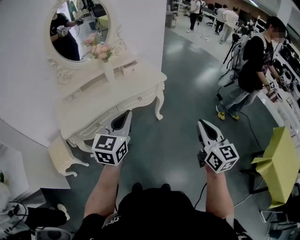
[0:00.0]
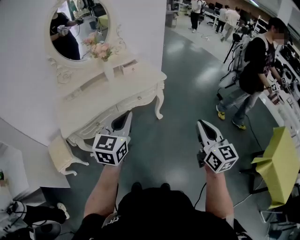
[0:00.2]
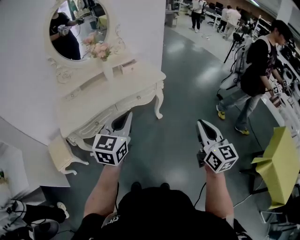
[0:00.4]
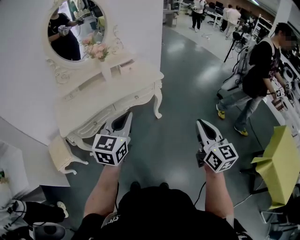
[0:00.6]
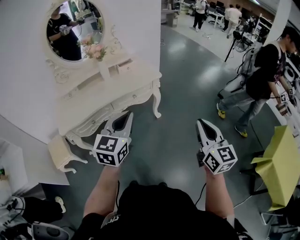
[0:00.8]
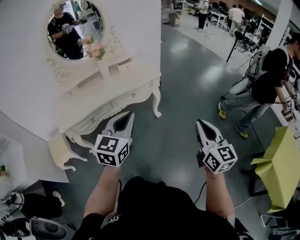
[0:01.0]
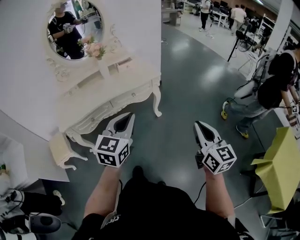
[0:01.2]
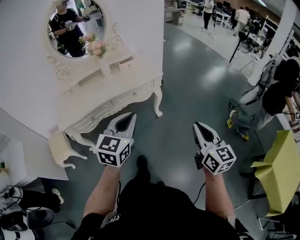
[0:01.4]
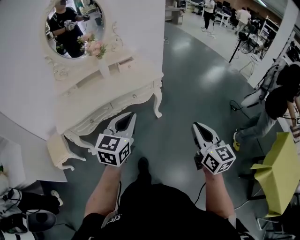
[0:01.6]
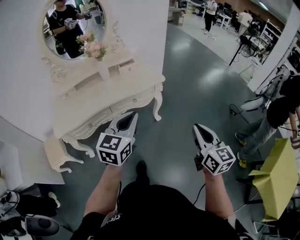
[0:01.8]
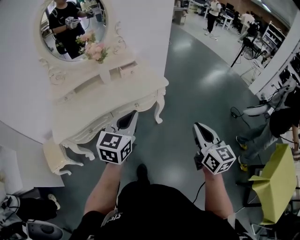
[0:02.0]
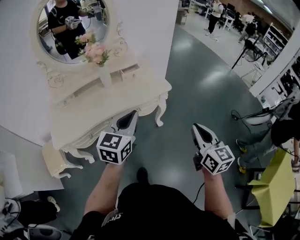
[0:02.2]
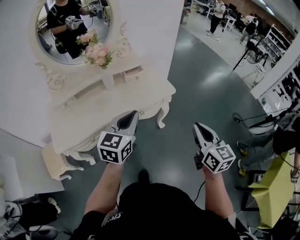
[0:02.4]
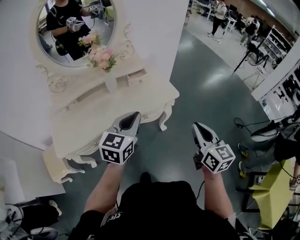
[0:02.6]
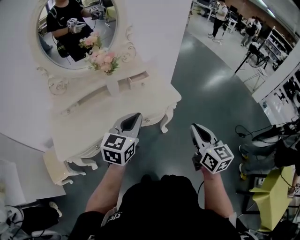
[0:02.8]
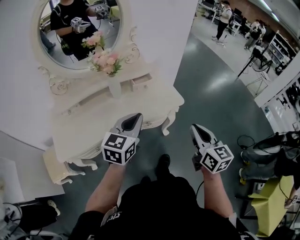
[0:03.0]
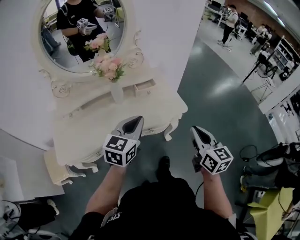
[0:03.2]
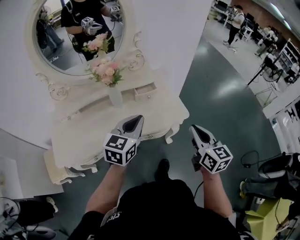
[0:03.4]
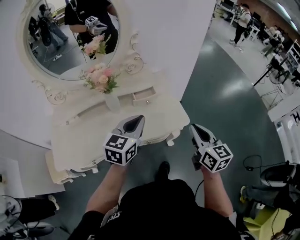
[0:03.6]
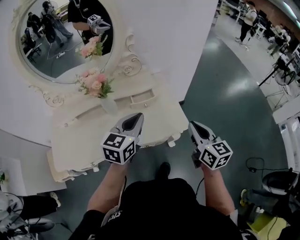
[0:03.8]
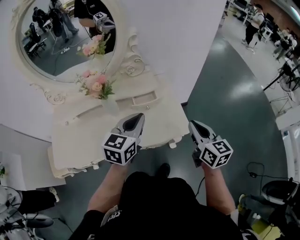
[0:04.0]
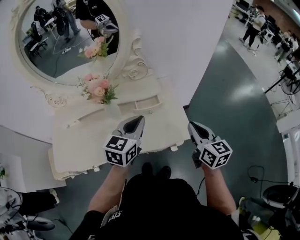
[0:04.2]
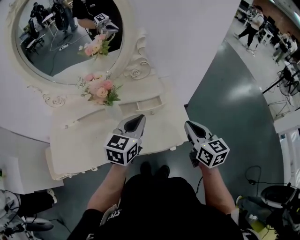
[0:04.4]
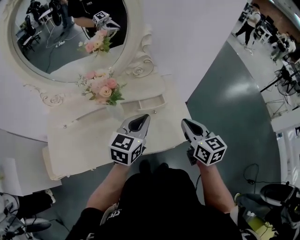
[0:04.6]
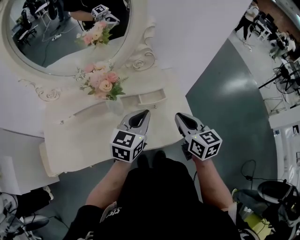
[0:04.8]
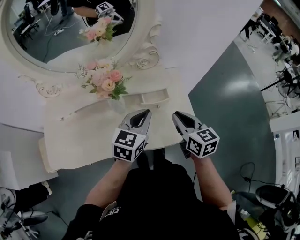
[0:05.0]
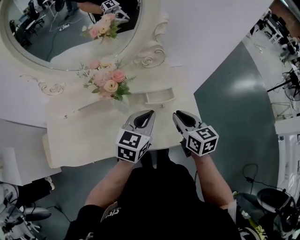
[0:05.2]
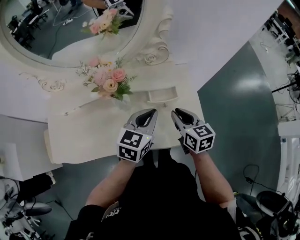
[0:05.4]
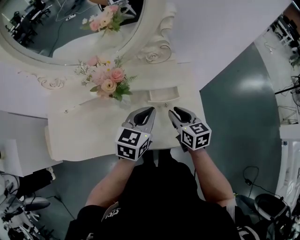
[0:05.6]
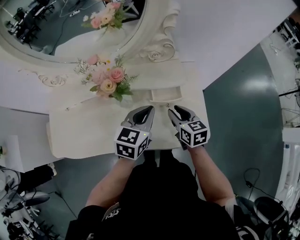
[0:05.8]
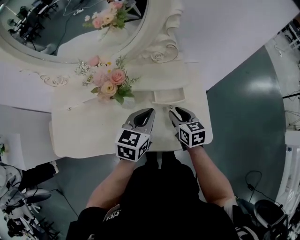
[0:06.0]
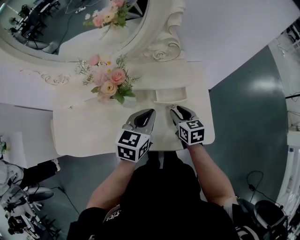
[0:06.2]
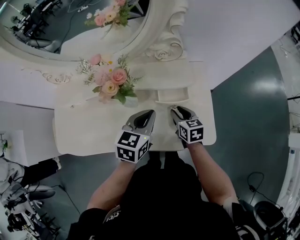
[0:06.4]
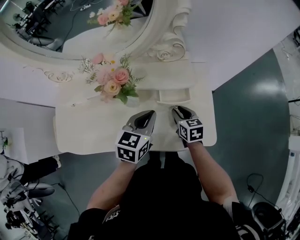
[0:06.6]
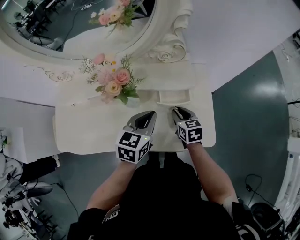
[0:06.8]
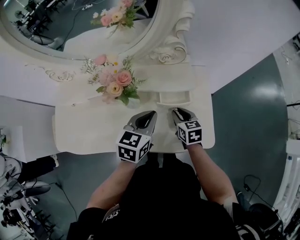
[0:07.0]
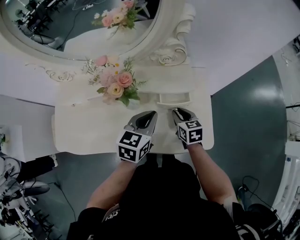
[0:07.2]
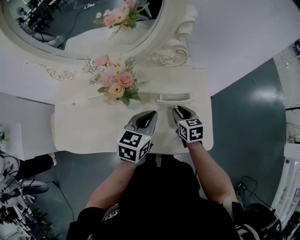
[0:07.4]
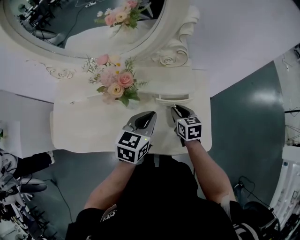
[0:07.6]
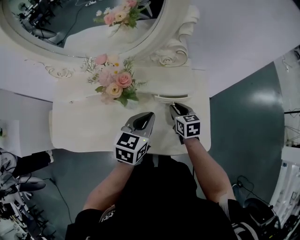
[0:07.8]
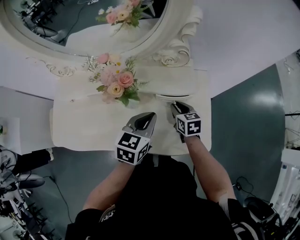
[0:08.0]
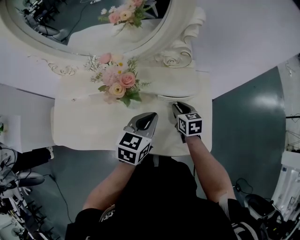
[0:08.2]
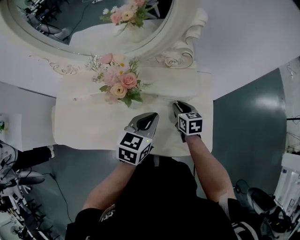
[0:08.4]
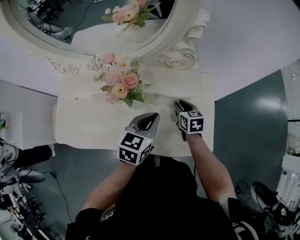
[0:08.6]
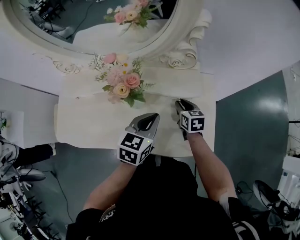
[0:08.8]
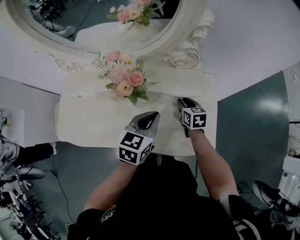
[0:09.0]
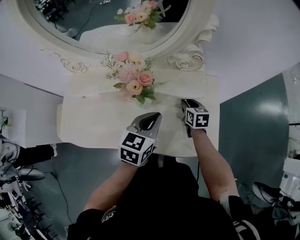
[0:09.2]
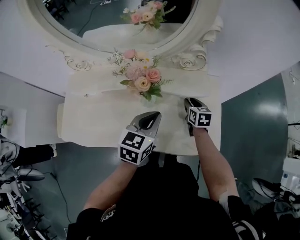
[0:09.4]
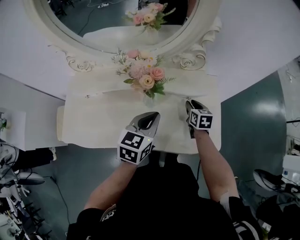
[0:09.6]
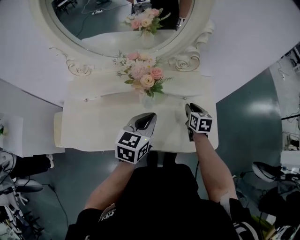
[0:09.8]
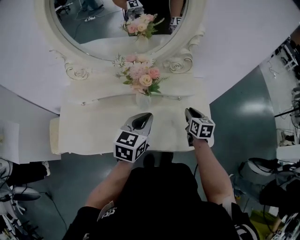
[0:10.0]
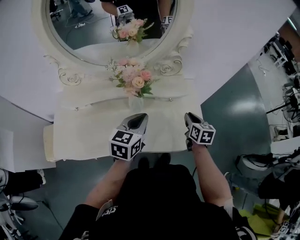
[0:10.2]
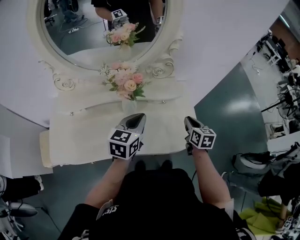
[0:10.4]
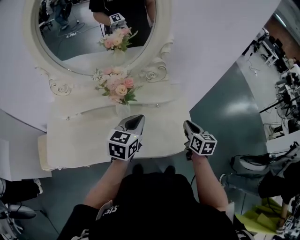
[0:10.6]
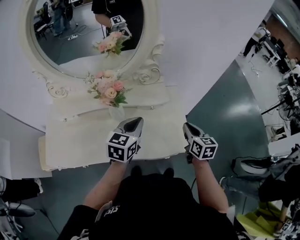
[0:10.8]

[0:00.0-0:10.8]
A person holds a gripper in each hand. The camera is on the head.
0:00.0 to 0:01.6: The right gripper moves to the right, approximately 5 cm, while the left gripper travels to the right by roughly 10 cm.
0:01.6 to 0:03.0: Both grippers move forward and to the left, some 30 cm.
0:03.0 to 0:04.6: The grippers both shift forward by roughly 25 cm.
0:04.6 to 0:06.2: The right gripper heads downward, forward and to the left, covering roughly 25 cm, turns by approximately 20 degrees, and opens its fingers. Meanwhile the left gripper is displaced downward by roughly 10 cm.
0:06.2 to 0:07.8: The grippers make only small movements.
0:07.8 to 0:09.2: The grippers move only a little.
0:09.2 to 0:10.8: The right gripper goes approximately 25 cm to the right, upward and backward, while the left gripper shifts by about 5 cm.

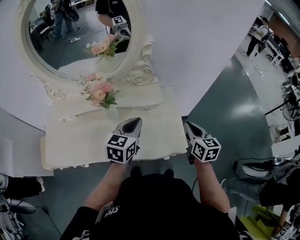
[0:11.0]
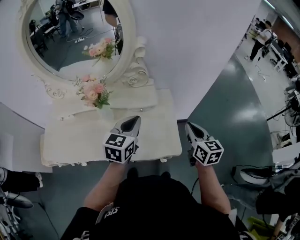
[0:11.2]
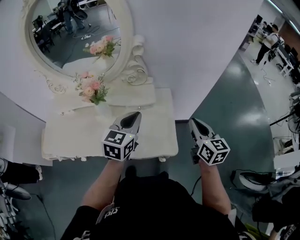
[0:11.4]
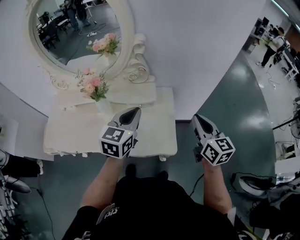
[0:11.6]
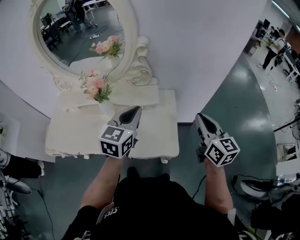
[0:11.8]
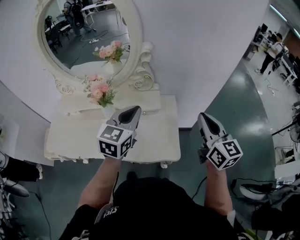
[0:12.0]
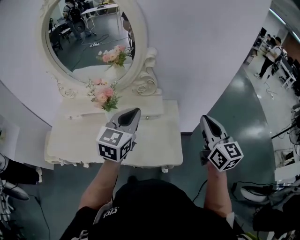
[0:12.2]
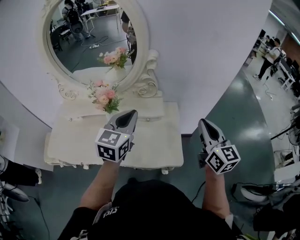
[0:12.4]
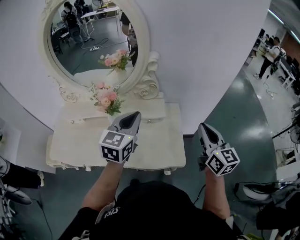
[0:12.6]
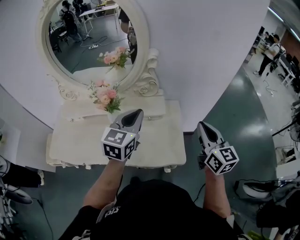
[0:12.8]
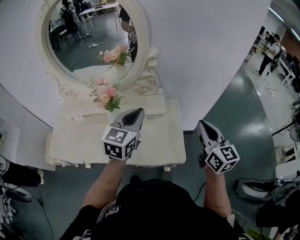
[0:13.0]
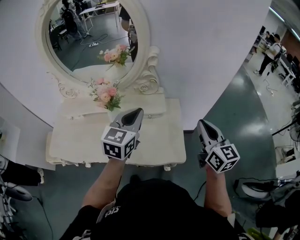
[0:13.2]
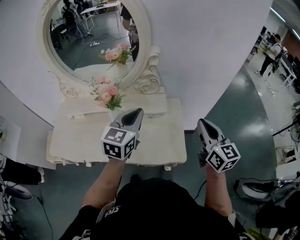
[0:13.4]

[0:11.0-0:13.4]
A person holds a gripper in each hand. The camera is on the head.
0:11.0 to 0:12.2: Both grippers travel together upward, roughly 15 cm. The right gripper changes its angle by some 20 degrees.
0:12.2 to 0:13.4: The grippers make only small movements.

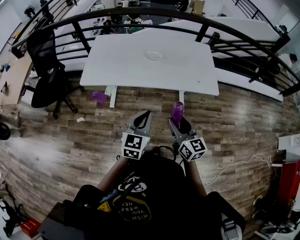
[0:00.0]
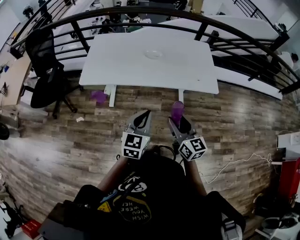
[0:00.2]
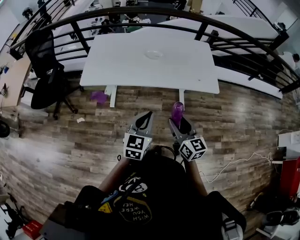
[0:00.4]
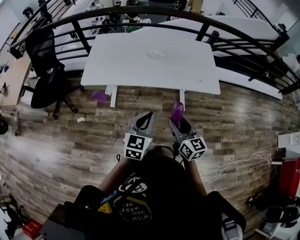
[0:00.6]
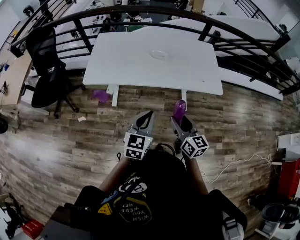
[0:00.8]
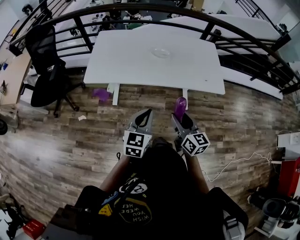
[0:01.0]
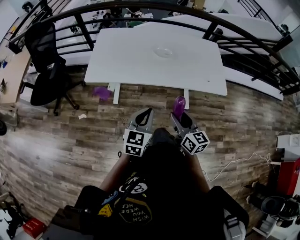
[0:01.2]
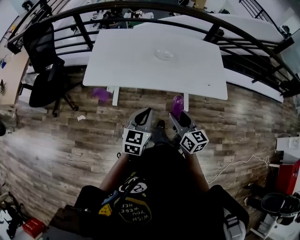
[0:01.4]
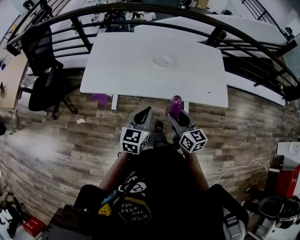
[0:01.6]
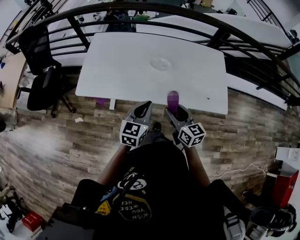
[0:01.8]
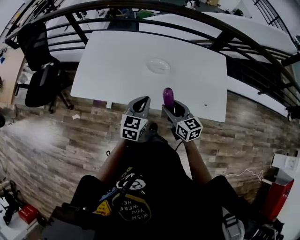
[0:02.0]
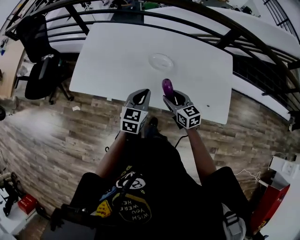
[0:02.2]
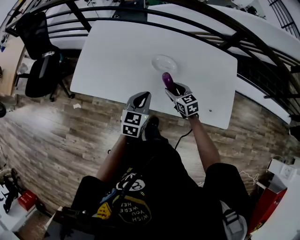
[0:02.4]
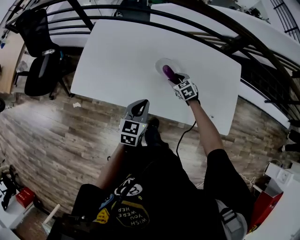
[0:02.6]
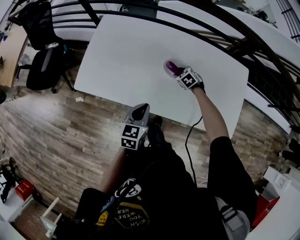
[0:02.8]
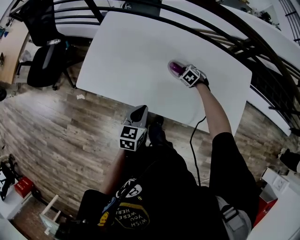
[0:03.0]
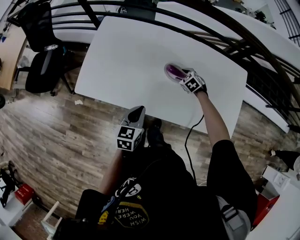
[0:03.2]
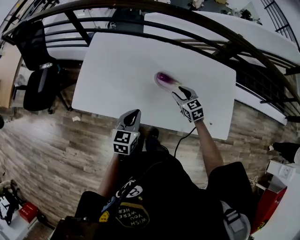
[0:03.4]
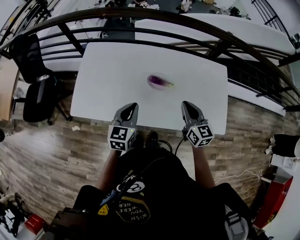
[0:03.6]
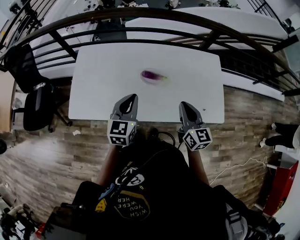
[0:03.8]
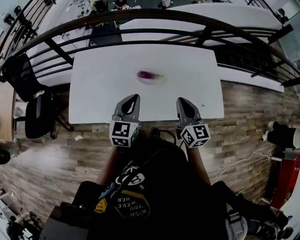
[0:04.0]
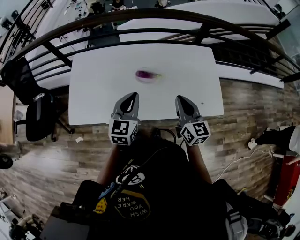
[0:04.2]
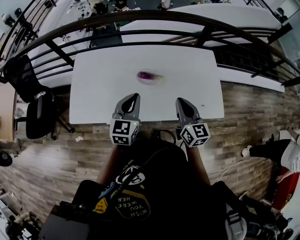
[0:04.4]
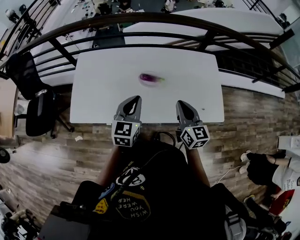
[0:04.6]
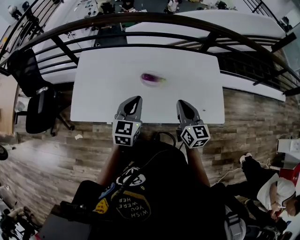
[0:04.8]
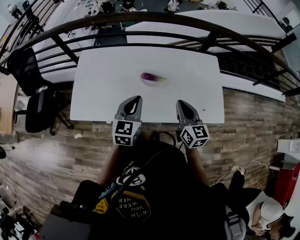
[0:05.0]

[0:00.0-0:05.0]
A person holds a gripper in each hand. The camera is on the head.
0:00.0 to 0:01.6: Both grippers travel together forward and to the left, approximately 20 cm.
0:01.6 to 0:03.4: The right gripper shifts by some 40 cm, and swivels roughly 40 degrees, while the left gripper shifts by about 25 cm.
0:03.4 to 0:05.0: The left gripper heads upward and to the right, covering roughly 10 cm. The right gripper heads upward, backward and to the right, covering some 25 cm, swivels approximately 40 degrees, and closes its fingers.

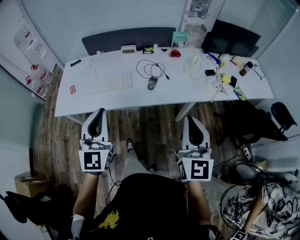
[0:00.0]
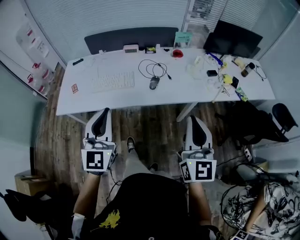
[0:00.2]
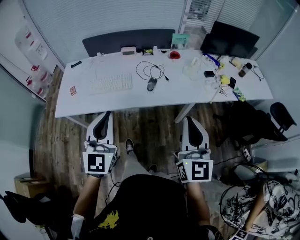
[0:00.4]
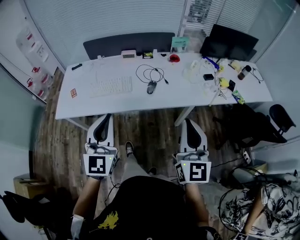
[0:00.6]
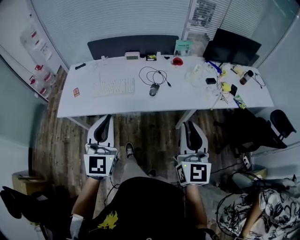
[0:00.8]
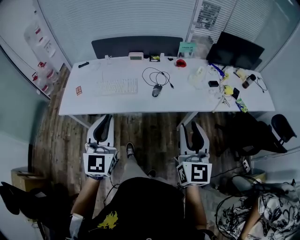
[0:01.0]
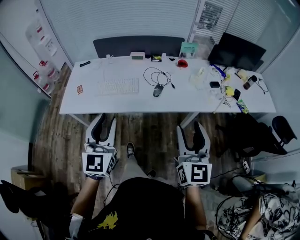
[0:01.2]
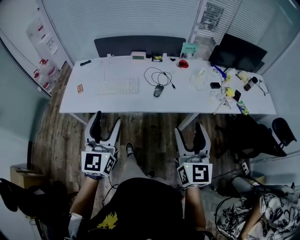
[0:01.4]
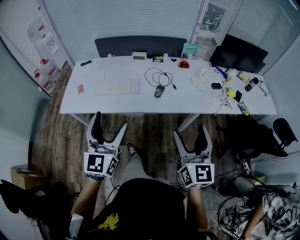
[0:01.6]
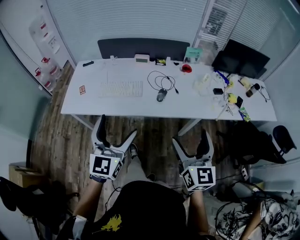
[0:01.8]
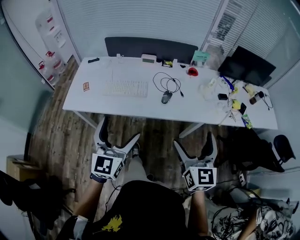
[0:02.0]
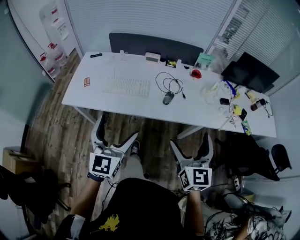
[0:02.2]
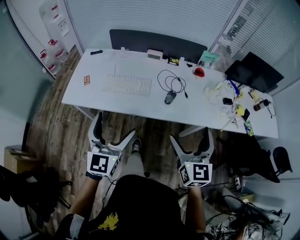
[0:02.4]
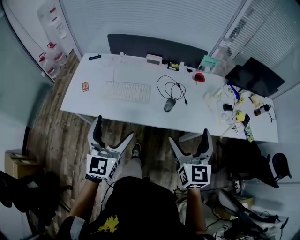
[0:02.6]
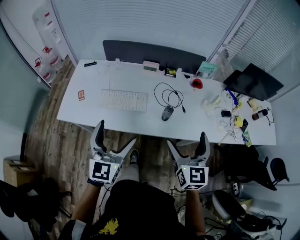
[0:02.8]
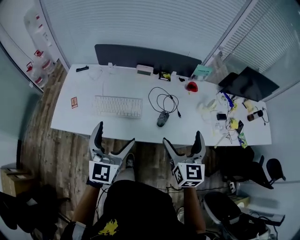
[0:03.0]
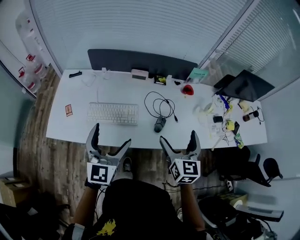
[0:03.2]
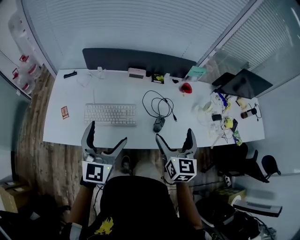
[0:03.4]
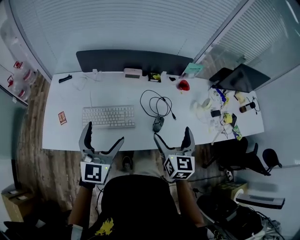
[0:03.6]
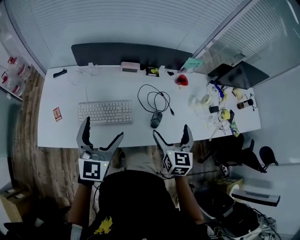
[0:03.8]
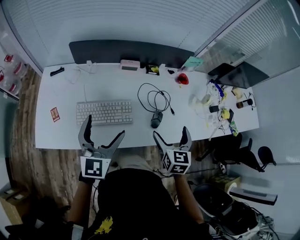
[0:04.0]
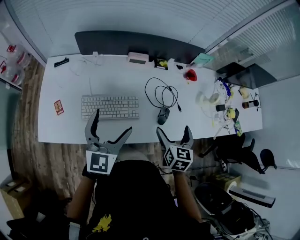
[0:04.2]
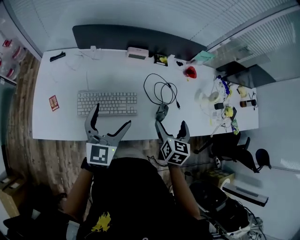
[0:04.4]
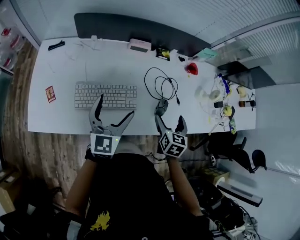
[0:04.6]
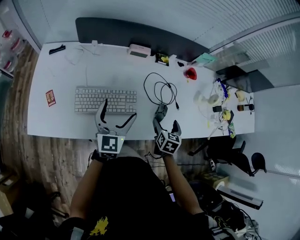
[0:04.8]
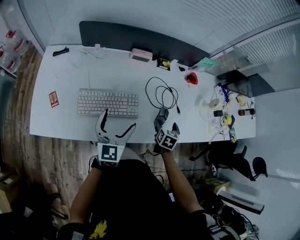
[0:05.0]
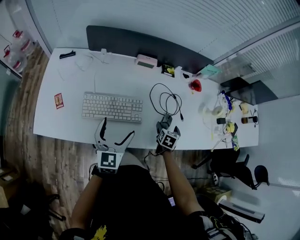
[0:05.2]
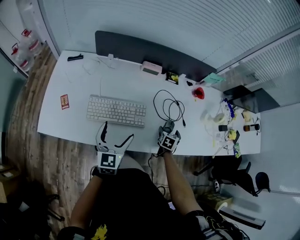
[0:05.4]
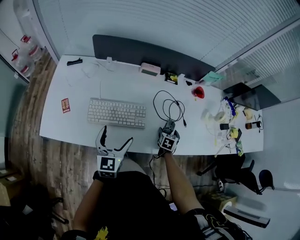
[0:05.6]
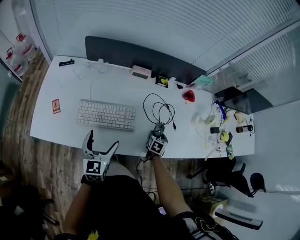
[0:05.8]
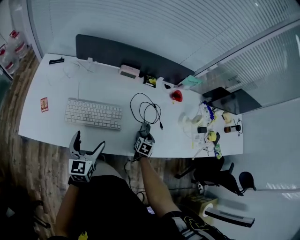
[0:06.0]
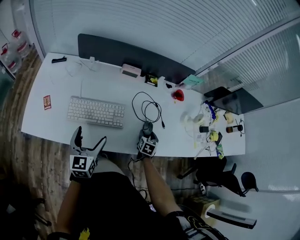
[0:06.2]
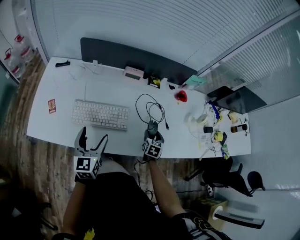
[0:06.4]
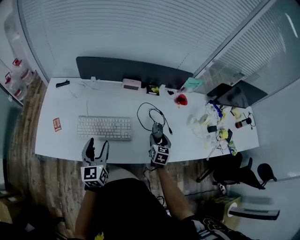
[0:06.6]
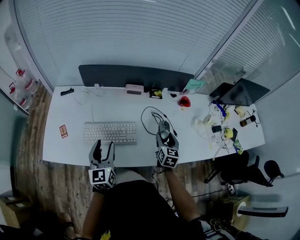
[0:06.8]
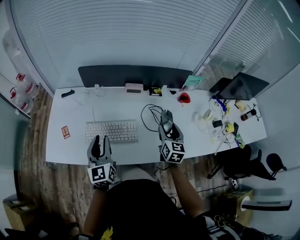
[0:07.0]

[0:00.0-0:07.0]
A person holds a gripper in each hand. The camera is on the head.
0:00.0 to 0:01.4: The right gripper opens, while the left gripper opens its fingers.
0:01.4 to 0:02.8: Both grippers move forward, about 20 cm. The right gripper opens its fingers. Meanwhile the left gripper opens.
0:02.8 to 0:04.2: The left gripper moves forward and to the left, roughly 25 cm. The right gripper is displaced forward, downward and to the left by some 25 cm, and swivels some 30 degrees.
0:04.2 to 0:05.6: The left gripper travels downward by roughly 10 cm; the right gripper is displaced downward by roughly 25 cm, and rotates roughly 20 degrees.
0:05.6 to 0:07.0: The left gripper travels upward by some 10 cm, and closes; the right gripper shifts roughly 25 cm upward, and angles its fingers upward, by some 30 degrees.
